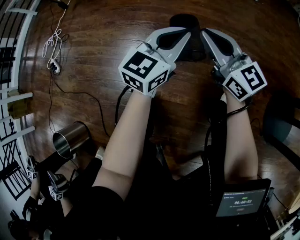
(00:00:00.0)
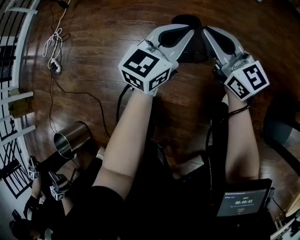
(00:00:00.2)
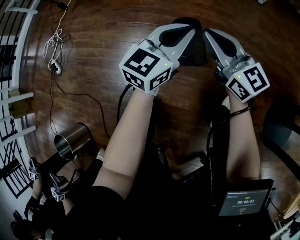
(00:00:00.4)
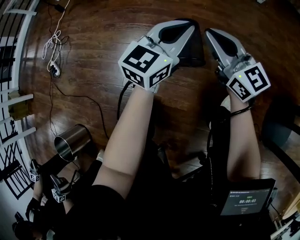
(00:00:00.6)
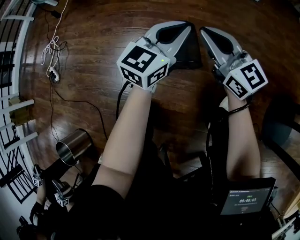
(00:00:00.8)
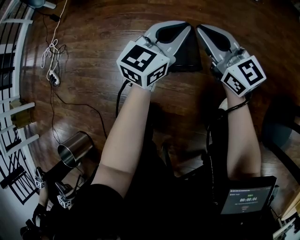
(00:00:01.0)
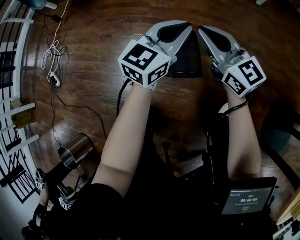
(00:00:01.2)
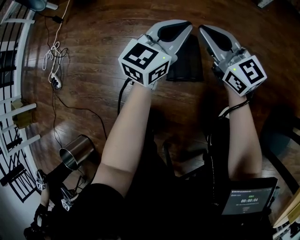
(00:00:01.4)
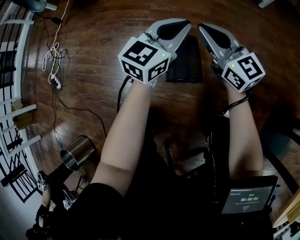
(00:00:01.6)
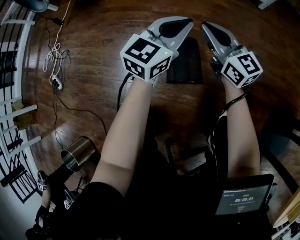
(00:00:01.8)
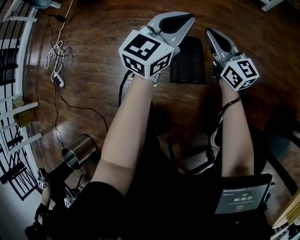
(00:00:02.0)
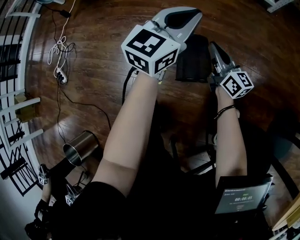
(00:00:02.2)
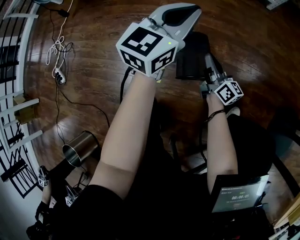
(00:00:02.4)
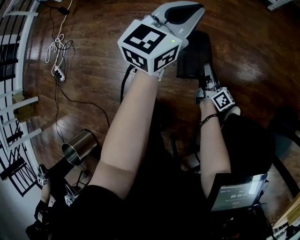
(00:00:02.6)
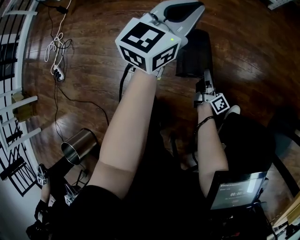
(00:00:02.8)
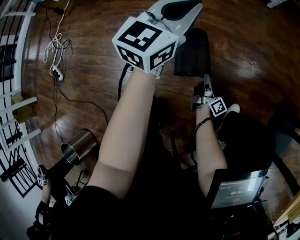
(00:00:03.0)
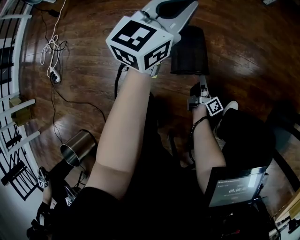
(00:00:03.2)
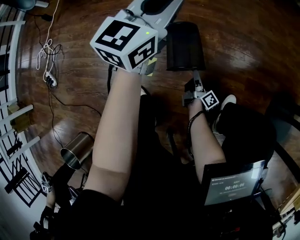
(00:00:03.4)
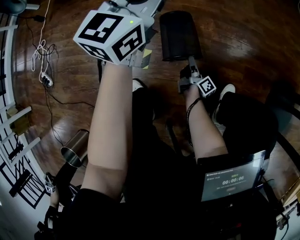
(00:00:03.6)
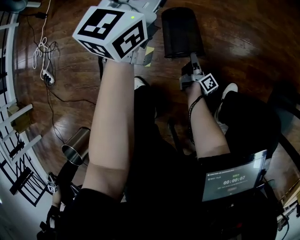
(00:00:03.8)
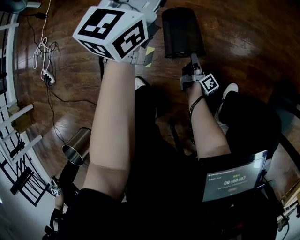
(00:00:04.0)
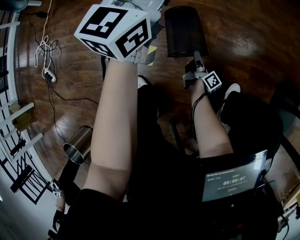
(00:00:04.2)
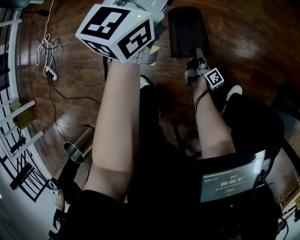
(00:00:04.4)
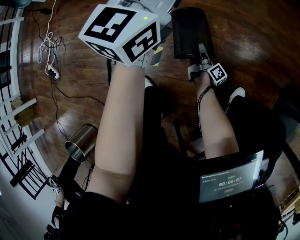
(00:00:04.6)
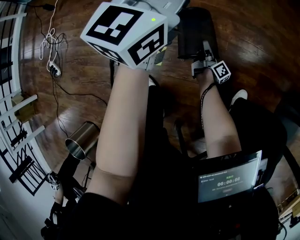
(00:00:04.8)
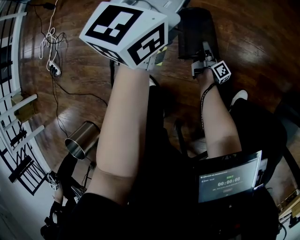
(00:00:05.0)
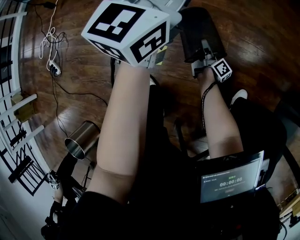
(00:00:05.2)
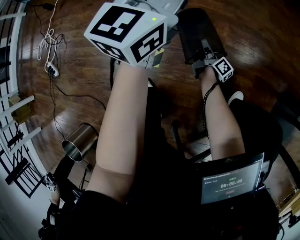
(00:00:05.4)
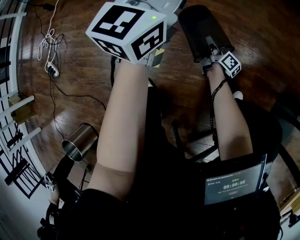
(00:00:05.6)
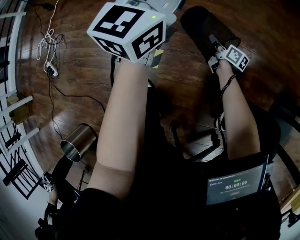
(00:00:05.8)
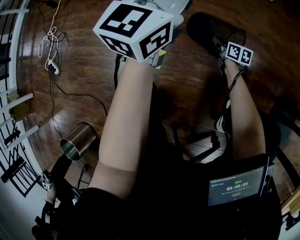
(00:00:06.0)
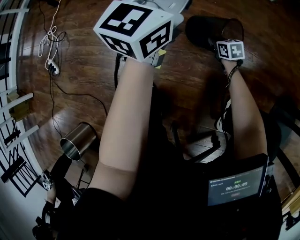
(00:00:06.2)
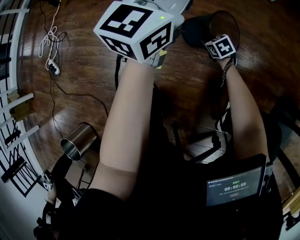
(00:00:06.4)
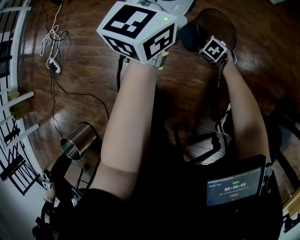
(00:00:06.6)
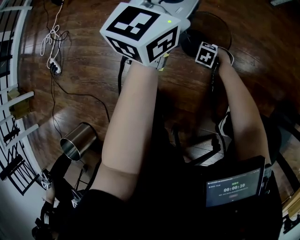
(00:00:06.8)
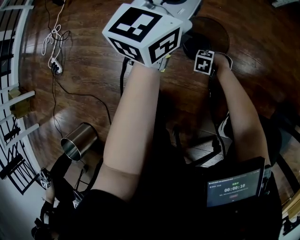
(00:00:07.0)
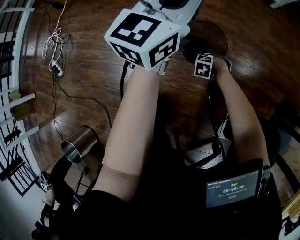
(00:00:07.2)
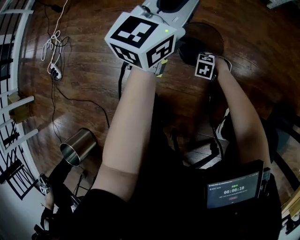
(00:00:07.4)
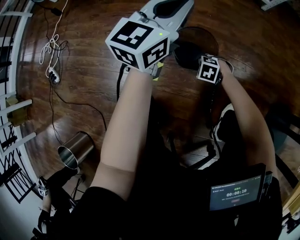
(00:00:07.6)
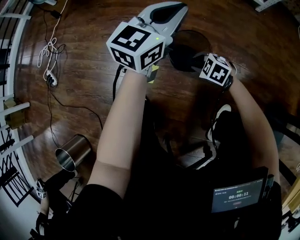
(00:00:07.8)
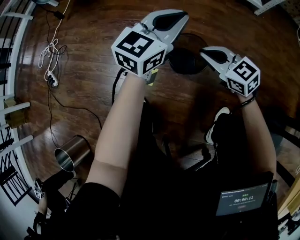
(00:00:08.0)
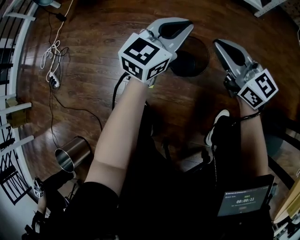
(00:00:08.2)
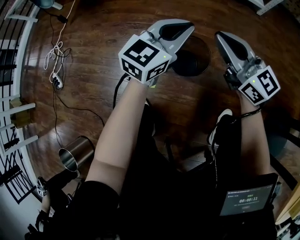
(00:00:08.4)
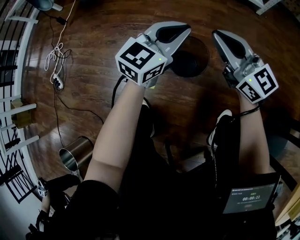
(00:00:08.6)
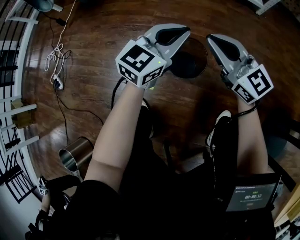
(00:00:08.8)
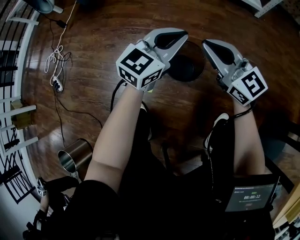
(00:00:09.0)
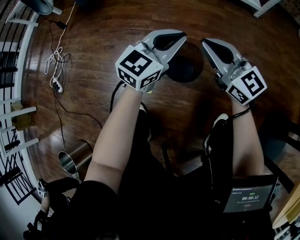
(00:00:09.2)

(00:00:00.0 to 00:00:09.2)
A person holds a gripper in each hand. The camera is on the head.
00:00:00.0 - 00:00:01.6: The two grippers go roughly 20 cm forward.
00:00:01.6 - 00:00:03.0: The right gripper heads downward and backward, covering about 35 cm, and rotates around the line of its fingers by approximately 70 degrees, clockwise from behind; the left gripper moves upward, roughly 5 cm.
00:00:03.0 - 00:00:04.6: The right gripper travels downward and forward by roughly 10 cm, and opens.
00:00:04.6 - 00:00:06.2: The right gripper travels forward by about 5 cm, tilts its fingers about 40 degrees downward, and closes.
00:00:06.2 - 00:00:07.6: The right gripper ends up some 10 cm from where it was, rotates around the line of its fingers by about 60 degrees, counterclockwise from behind, and opens up.
00:00:07.6 - 00:00:09.2: The left gripper shifts by some 10 cm; the right gripper moves upward, some 35 cm, tilts its fingers about 80 degrees upward, and closes up.

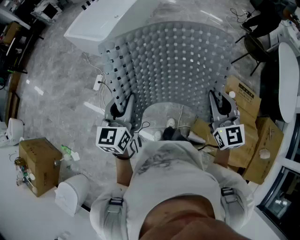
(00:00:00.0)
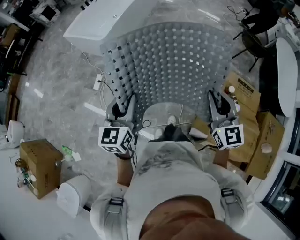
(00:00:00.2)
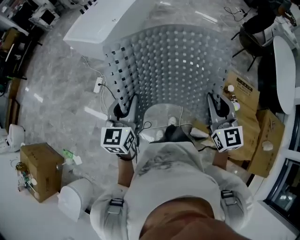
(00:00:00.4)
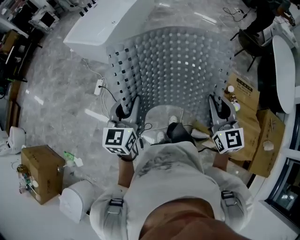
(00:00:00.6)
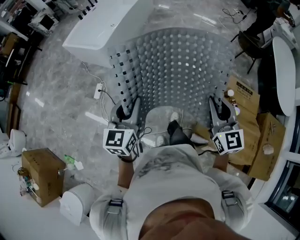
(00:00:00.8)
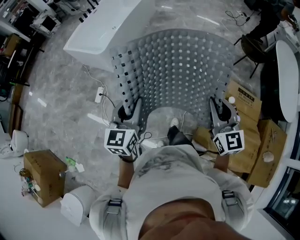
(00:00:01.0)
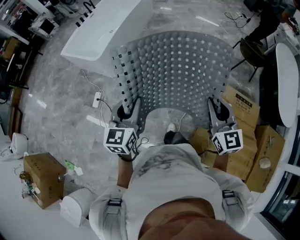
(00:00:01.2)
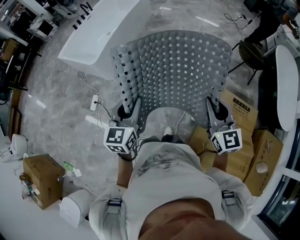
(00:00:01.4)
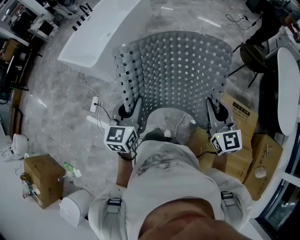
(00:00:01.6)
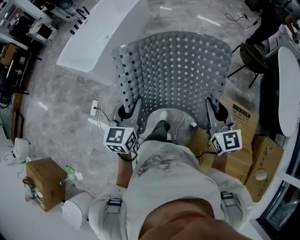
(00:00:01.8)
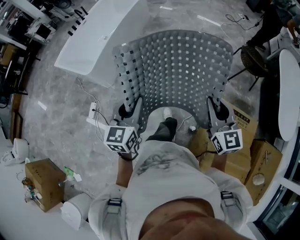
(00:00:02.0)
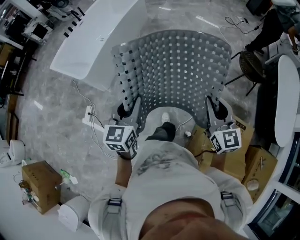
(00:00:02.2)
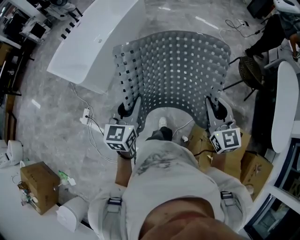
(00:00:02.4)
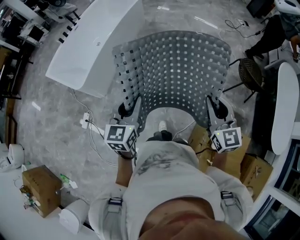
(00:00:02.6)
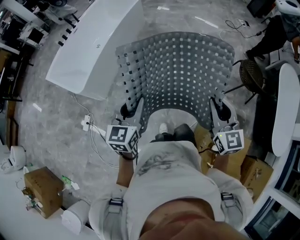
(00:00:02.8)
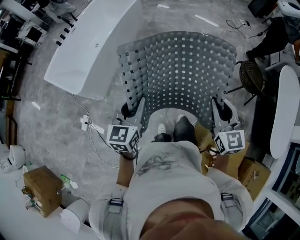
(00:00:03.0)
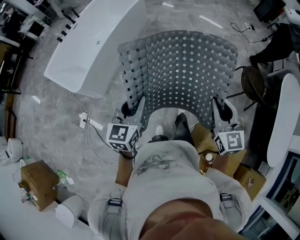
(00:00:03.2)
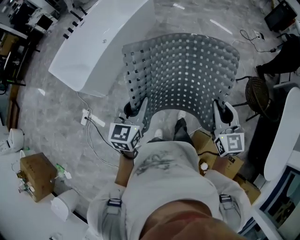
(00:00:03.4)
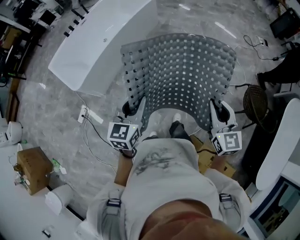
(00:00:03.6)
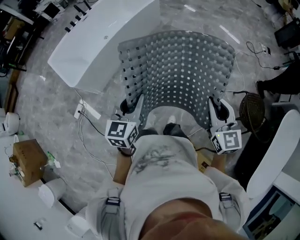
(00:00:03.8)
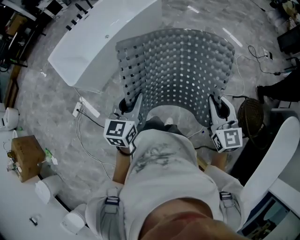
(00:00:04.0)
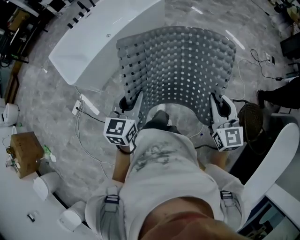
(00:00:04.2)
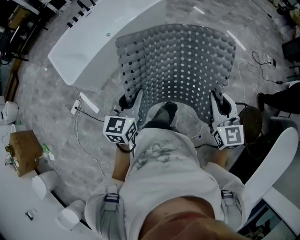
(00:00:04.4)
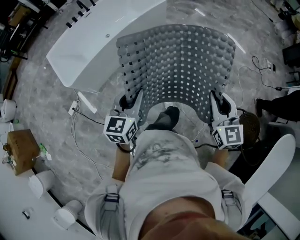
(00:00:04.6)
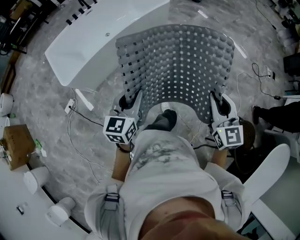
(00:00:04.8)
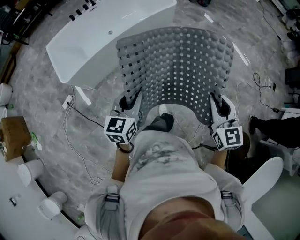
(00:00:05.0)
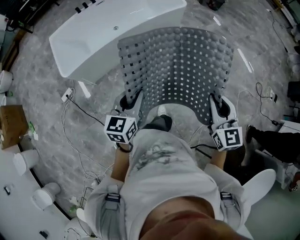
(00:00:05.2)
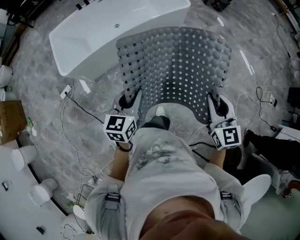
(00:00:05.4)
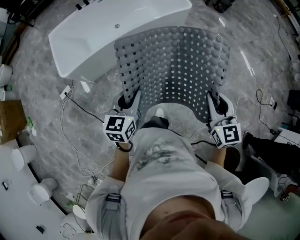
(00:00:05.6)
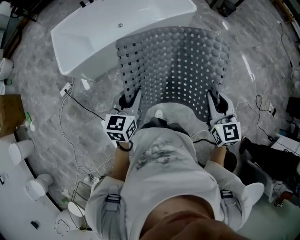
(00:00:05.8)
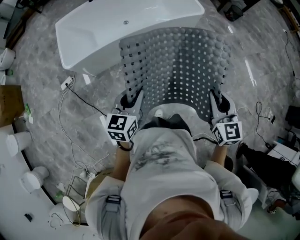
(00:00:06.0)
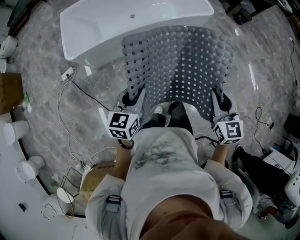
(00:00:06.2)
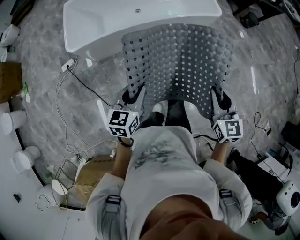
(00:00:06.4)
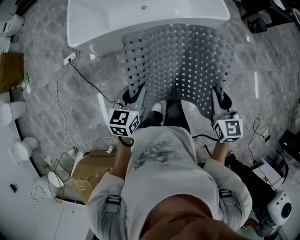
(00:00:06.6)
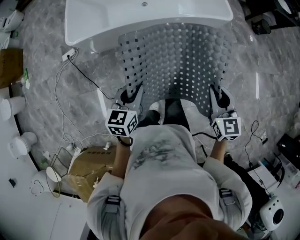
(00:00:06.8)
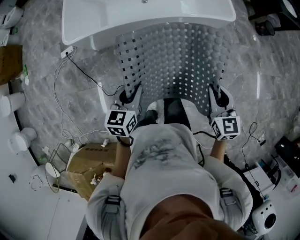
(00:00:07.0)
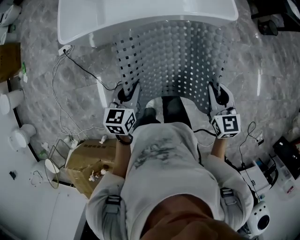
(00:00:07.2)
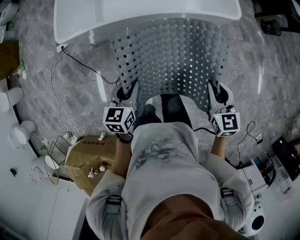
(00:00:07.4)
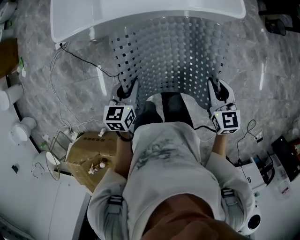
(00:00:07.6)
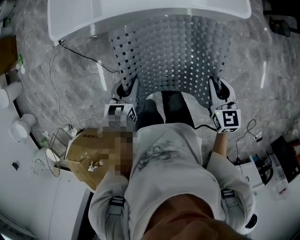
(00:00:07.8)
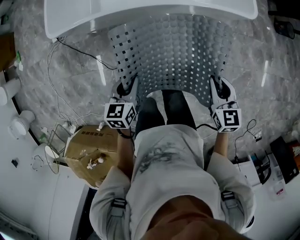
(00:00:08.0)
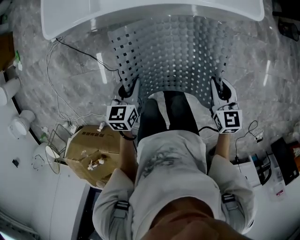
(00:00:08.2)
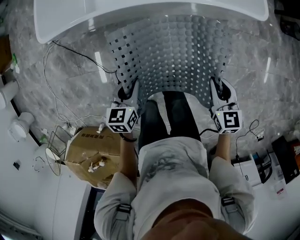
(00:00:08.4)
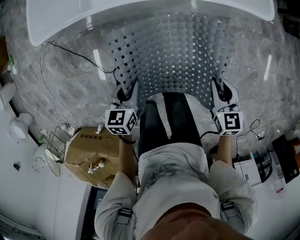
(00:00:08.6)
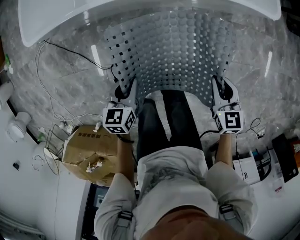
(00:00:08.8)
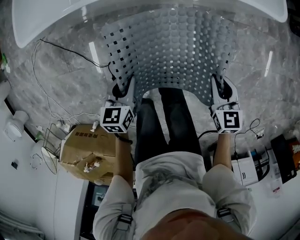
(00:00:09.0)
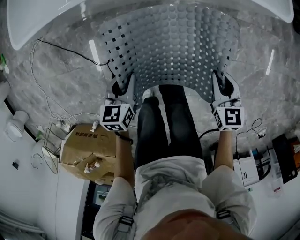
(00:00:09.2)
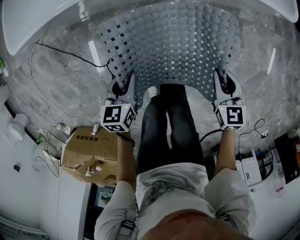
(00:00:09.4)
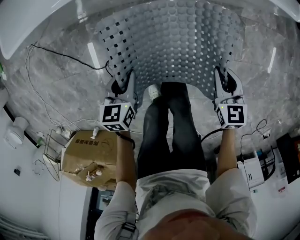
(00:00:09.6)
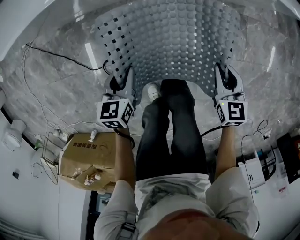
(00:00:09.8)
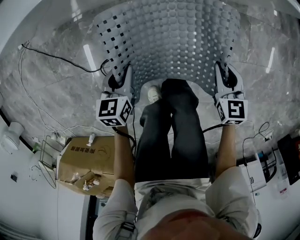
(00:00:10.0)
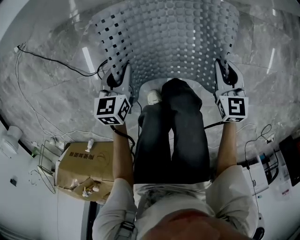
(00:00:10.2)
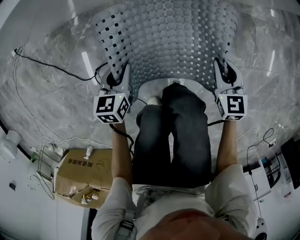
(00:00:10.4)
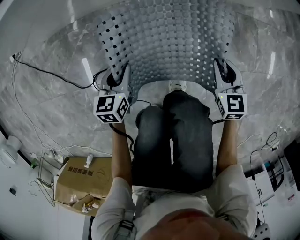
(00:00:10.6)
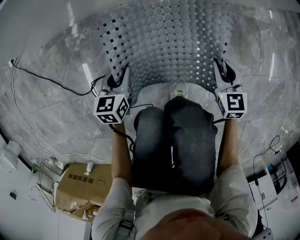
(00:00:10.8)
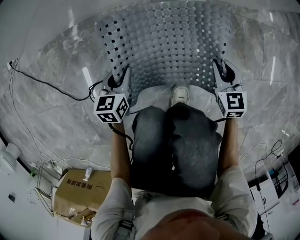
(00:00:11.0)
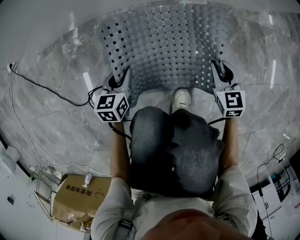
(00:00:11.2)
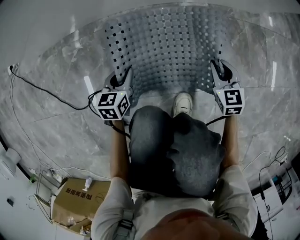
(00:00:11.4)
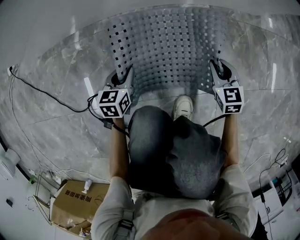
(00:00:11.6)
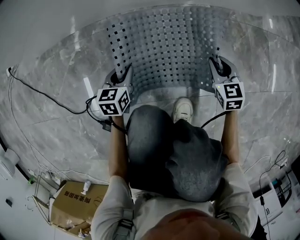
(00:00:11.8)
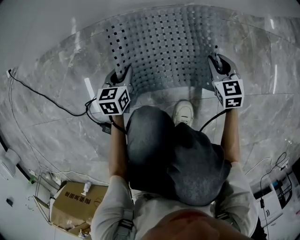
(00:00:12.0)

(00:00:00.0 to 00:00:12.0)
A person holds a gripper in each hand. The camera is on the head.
00:00:00.0 - 00:00:01.6: The left gripper shifts approximately 20 cm forward and to the right, while the right gripper goes roughly 20 cm forward, to the right and downward.
00:00:01.6 - 00:00:03.0: The left gripper heads backward and to the left, covering some 30 cm. The right gripper shifts about 35 cm backward, to the left and upward.
00:00:03.0 - 00:00:04.4: The right gripper travels forward, to the right and downward by some 15 cm; the left gripper shifts approximately 10 cm to the right and forward.
00:00:04.4 - 00:00:06.0: The right gripper moves roughly 20 cm backward and comes back. Meanwhile the left gripper moves roughly 10 cm backward and comes back.
00:00:06.0 - 00:00:07.6: The grippers both shift forward and downward by approximately 30 cm. The right gripper rotates approximately 30 degrees; the left gripper rotates about 30 degrees.
00:00:07.6 - 00:00:09.0: Both grippers travel together downward, roughly 25 cm.
00:00:09.0 - 00:00:10.4: The two grippers go approximately 30 cm downward.
00:00:10.4 - 00:00:12.0: Both grippers travel together downward, approximately 25 cm.

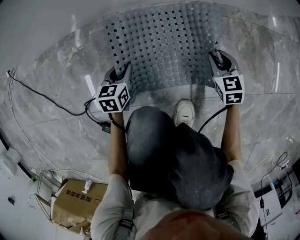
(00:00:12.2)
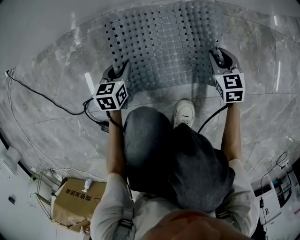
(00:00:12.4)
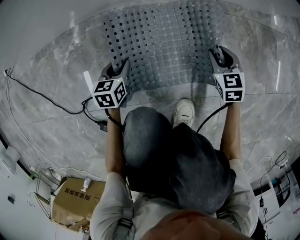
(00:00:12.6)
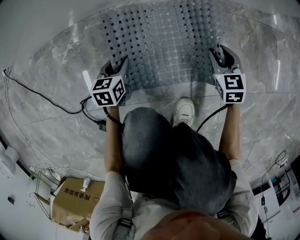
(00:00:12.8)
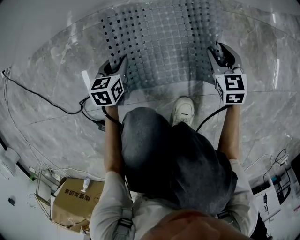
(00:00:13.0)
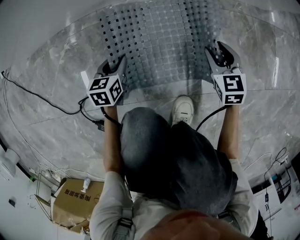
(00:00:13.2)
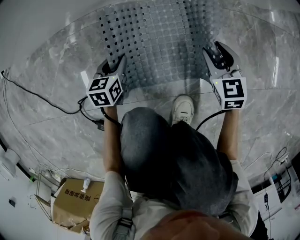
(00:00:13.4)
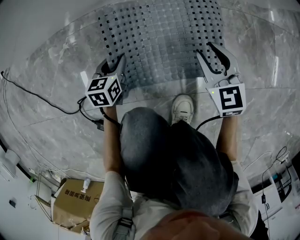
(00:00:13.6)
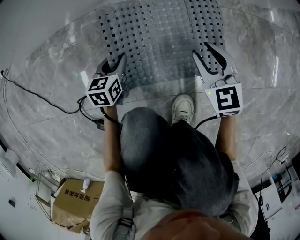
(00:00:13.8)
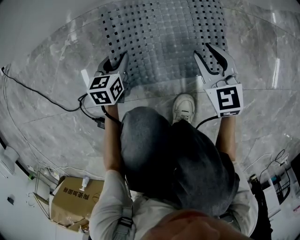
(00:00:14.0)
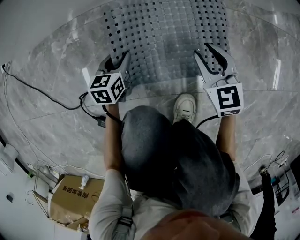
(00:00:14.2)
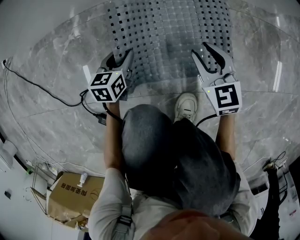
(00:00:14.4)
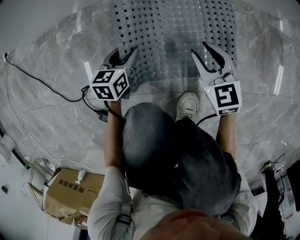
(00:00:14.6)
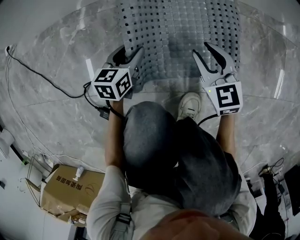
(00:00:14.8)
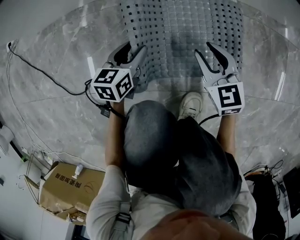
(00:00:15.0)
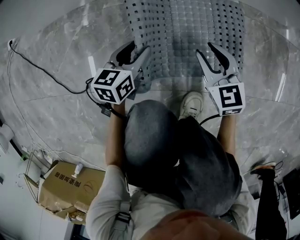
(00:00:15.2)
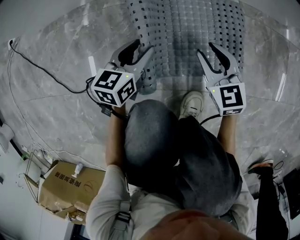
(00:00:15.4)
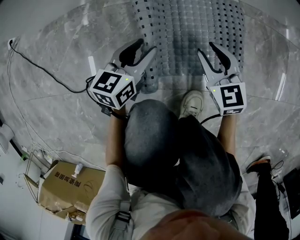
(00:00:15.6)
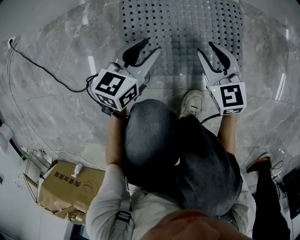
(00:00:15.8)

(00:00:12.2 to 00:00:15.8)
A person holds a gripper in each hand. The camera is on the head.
00:00:12.2 - 00:00:14.0: The right gripper shifts some 10 cm to the left and upward.
00:00:14.0 - 00:00:15.8: The left gripper travels upward and to the right by about 10 cm, and changes its angle by about 20 degrees. Meanwhile the right gripper changes place by some 5 cm.
